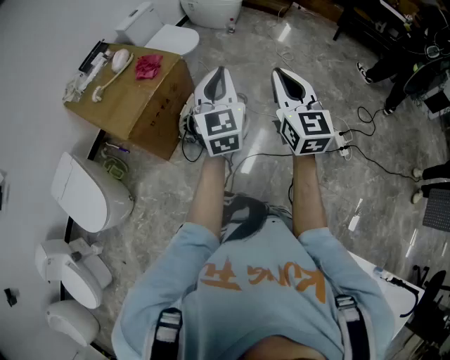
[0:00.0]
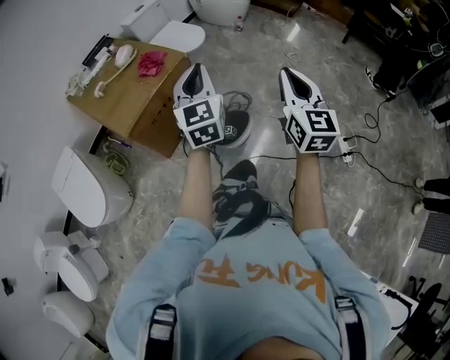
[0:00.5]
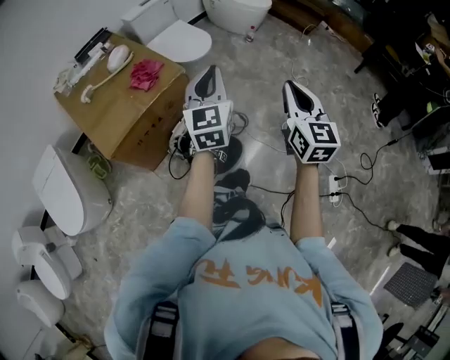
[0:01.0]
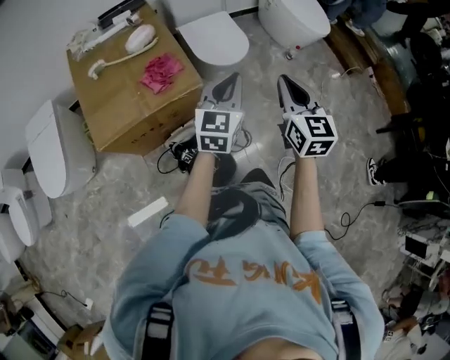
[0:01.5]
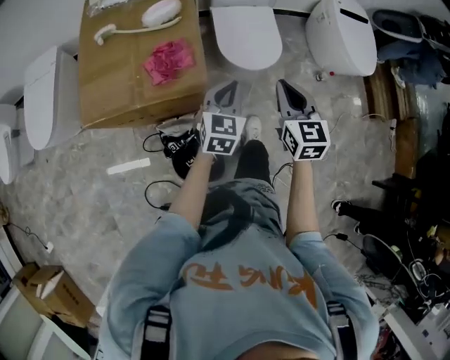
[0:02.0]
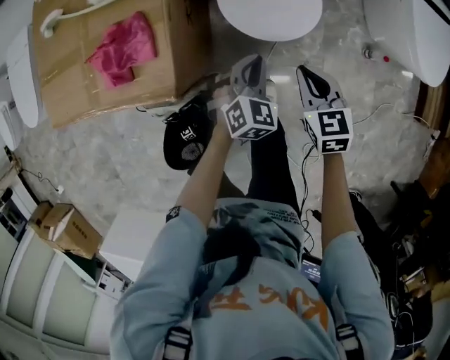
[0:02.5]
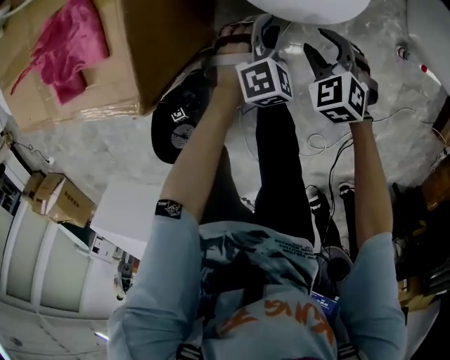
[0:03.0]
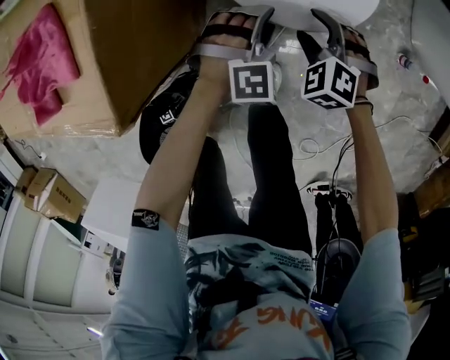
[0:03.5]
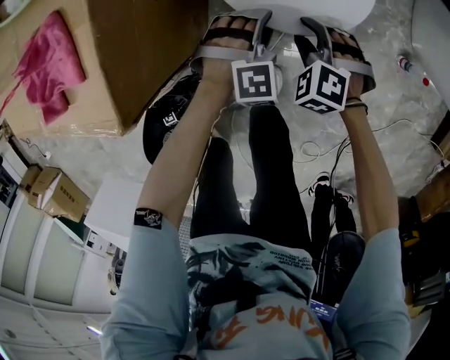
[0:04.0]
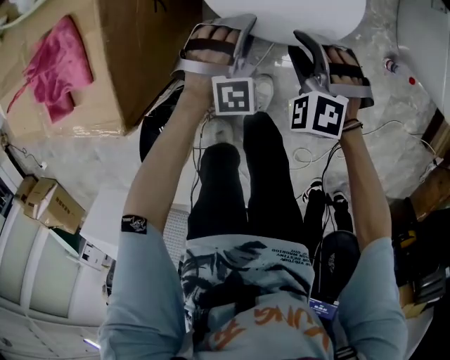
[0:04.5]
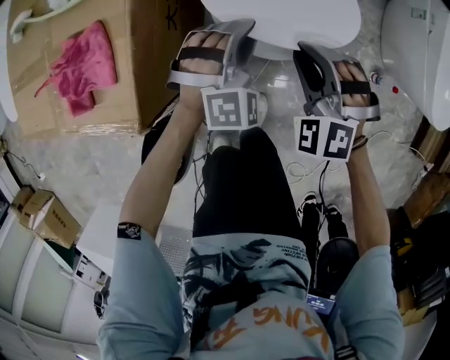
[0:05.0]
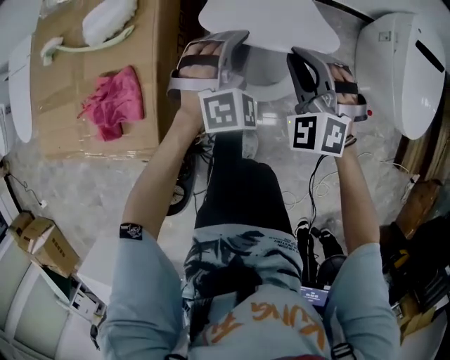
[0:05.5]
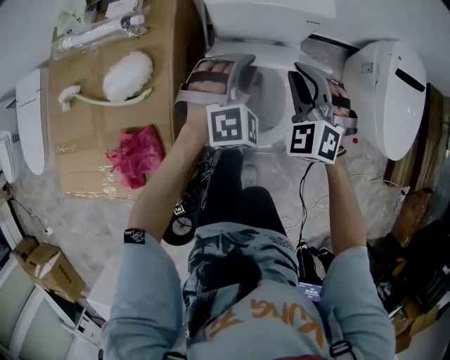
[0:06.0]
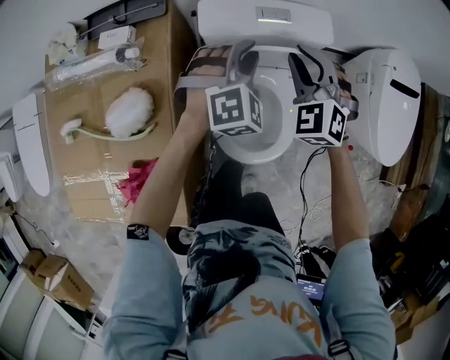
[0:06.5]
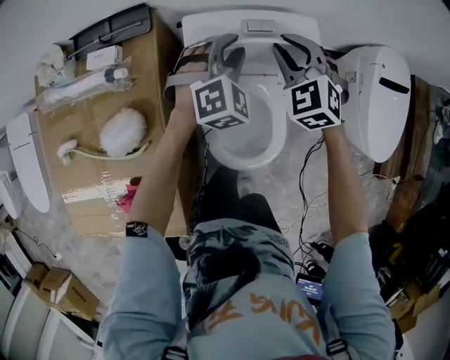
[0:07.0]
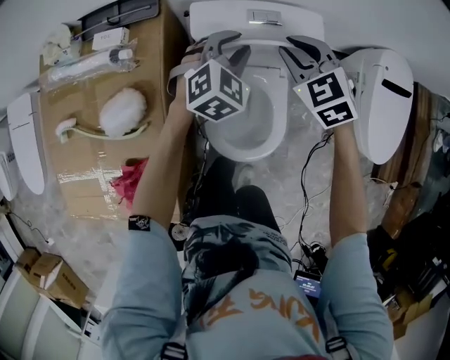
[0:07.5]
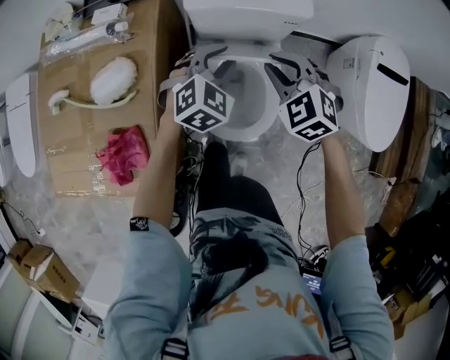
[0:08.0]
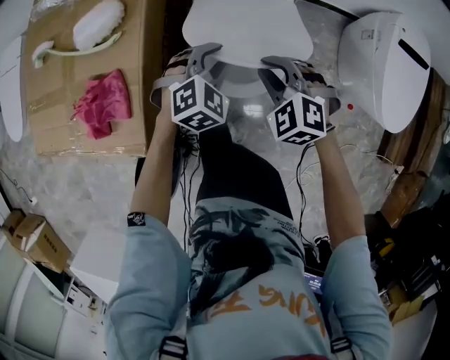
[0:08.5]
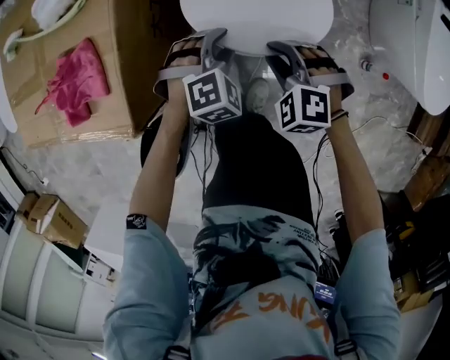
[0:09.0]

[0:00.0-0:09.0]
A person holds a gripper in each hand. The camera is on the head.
0:00.0 to 0:02.0: The two grippers travel together, roughly 70 cm. The right gripper changes its angle by about 50 degrees, while the left gripper rotates some 40 degrees.
0:02.0 to 0:04.5: The left gripper travels downward, forward and to the right by about 50 cm, rolls clockwise, seen from behind, by roughly 60 degrees, and opens up, while the right gripper heads downward and forward, covering some 50 cm, rotates around the line of its fingers by about 60 degrees, counterclockwise from behind, and opens up.
0:04.5 to 0:07.0: The two grippers travel together, forward, some 40 cm. The grippers both shift upward by about 35 cm. The right gripper rotates approximately 30 degrees; the left gripper turns by roughly 20 degrees.
0:07.0 to 0:09.0: The pair of grippers is taken backward, about 40 cm. The grippers both shift downward by approximately 25 cm. The right gripper swivels roughly 30 degrees, while the left gripper swivels some 20 degrees.

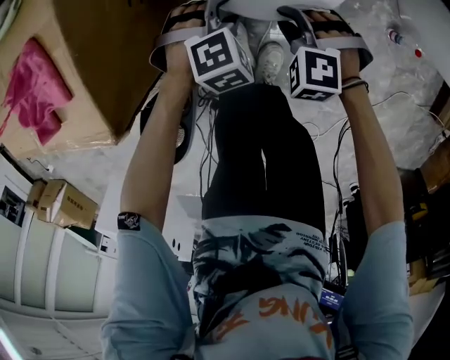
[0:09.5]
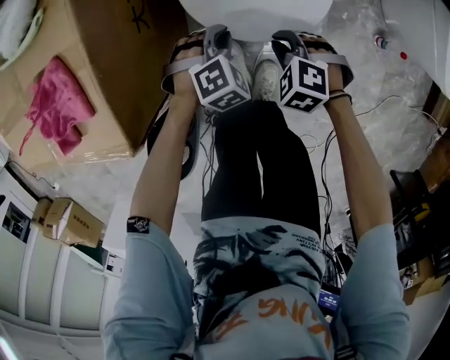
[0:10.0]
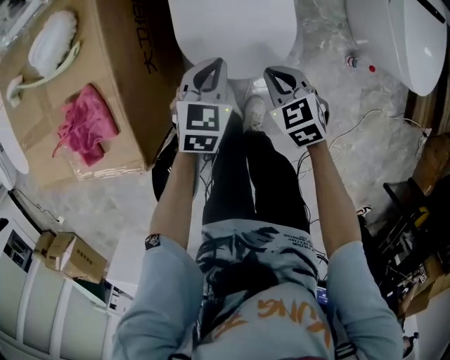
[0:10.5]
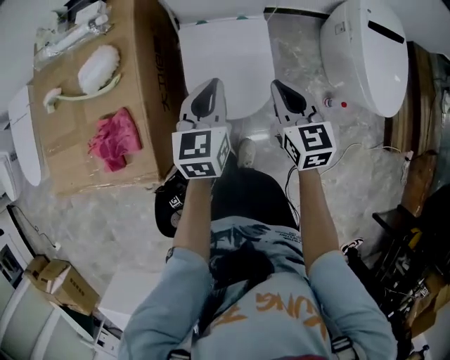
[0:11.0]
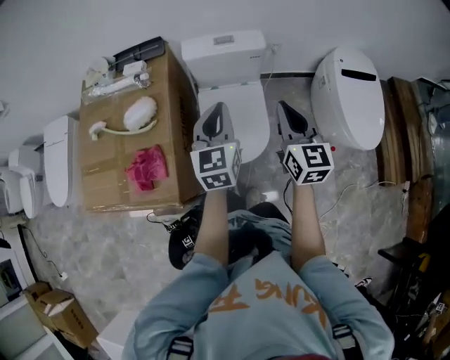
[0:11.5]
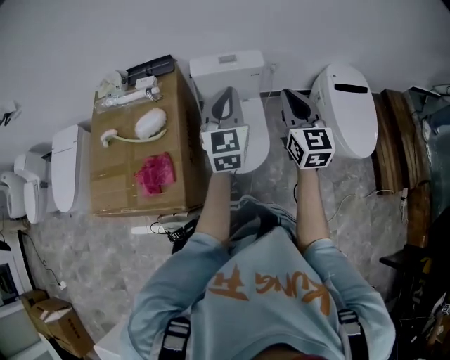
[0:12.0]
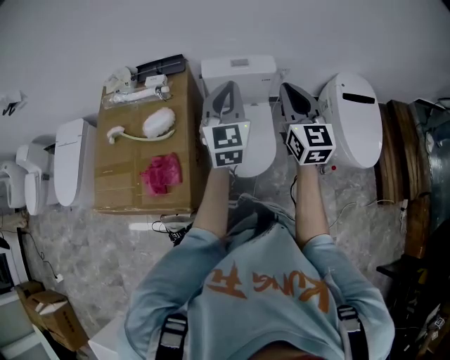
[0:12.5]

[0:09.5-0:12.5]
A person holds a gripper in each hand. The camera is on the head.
0:09.5 to 0:11.0: The grippers both shift upward by approximately 35 cm. The left gripper angles its fingers upward, by some 40 degrees, and closes, while the right gripper twists about 70 degrees clockwise, seen from behind, and closes up.
0:11.0 to 0:12.5: The grippers both shift upward by about 30 cm. The left gripper changes its angle by some 30 degrees. The right gripper swivels about 30 degrees.

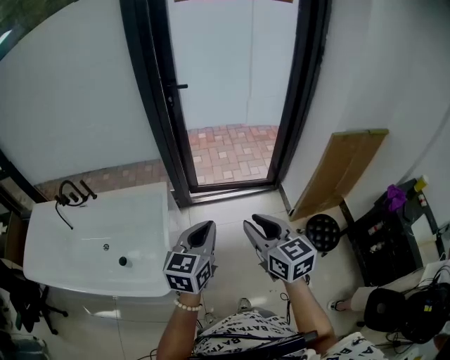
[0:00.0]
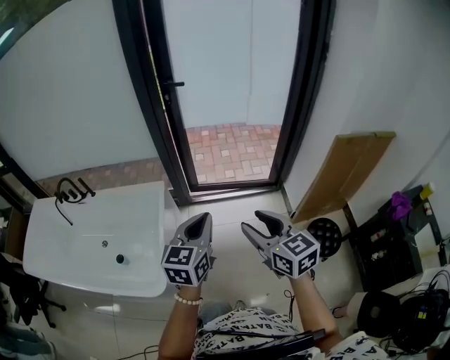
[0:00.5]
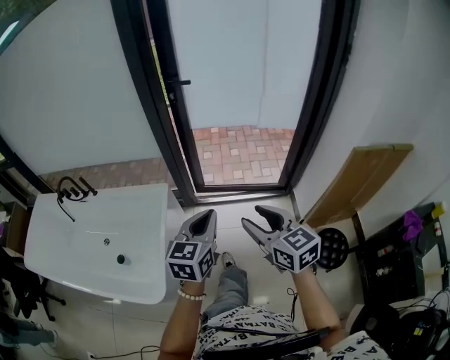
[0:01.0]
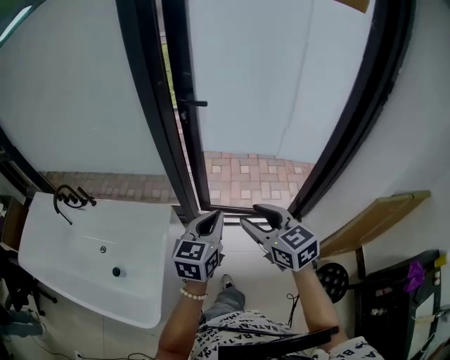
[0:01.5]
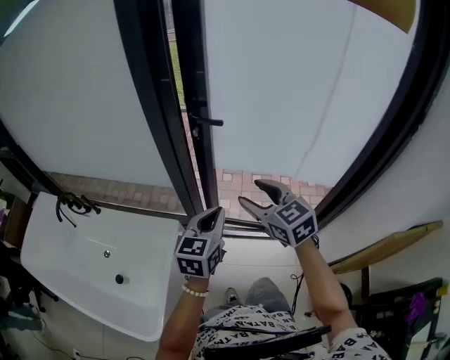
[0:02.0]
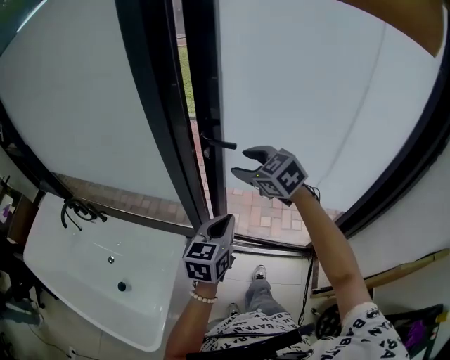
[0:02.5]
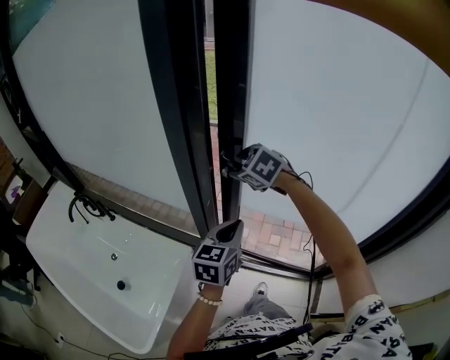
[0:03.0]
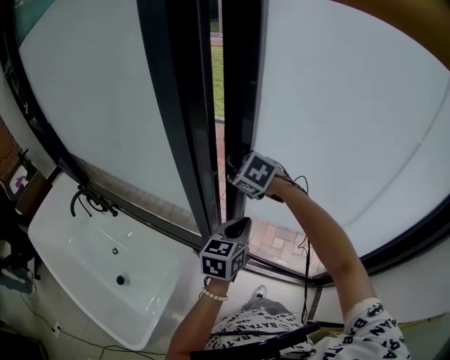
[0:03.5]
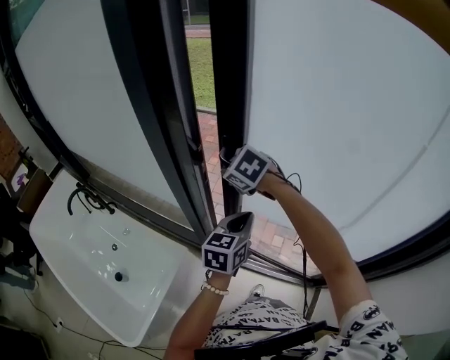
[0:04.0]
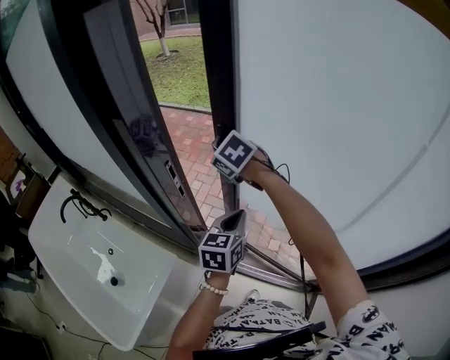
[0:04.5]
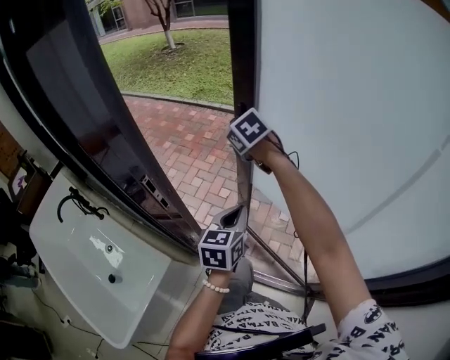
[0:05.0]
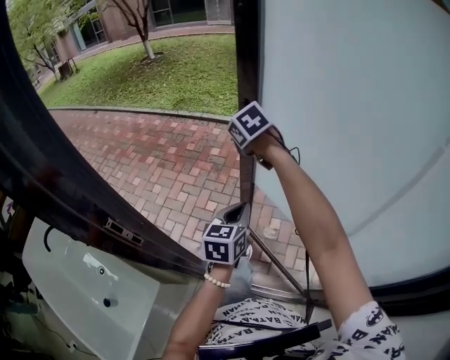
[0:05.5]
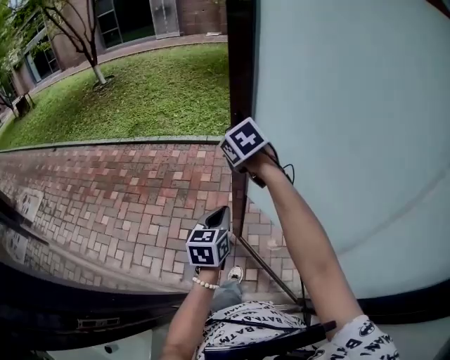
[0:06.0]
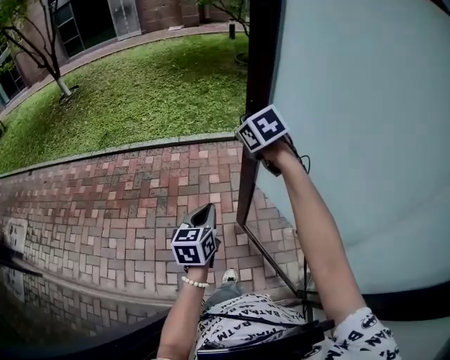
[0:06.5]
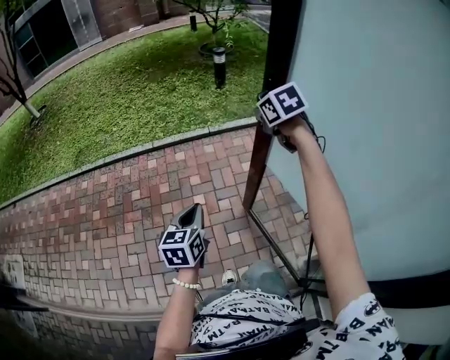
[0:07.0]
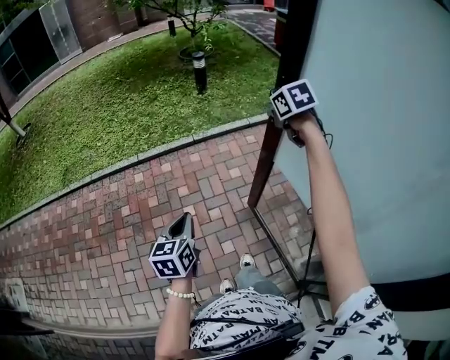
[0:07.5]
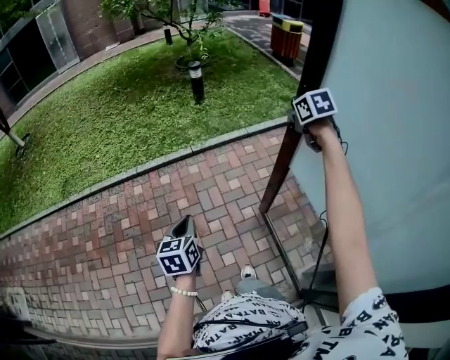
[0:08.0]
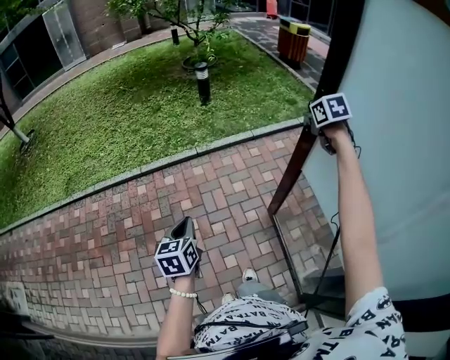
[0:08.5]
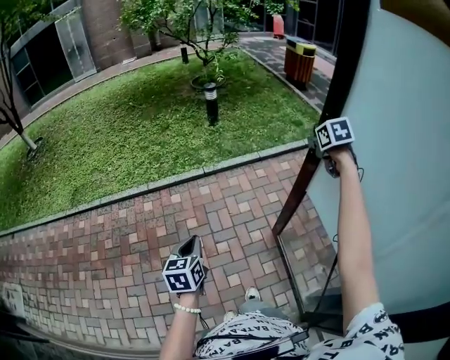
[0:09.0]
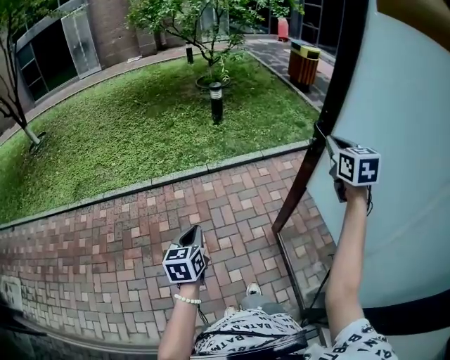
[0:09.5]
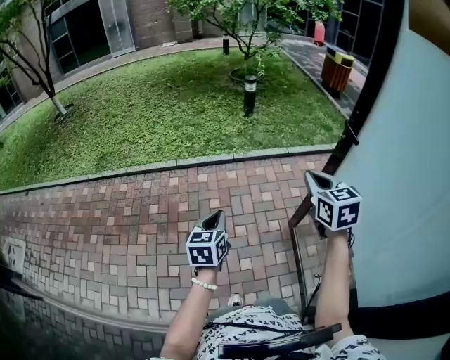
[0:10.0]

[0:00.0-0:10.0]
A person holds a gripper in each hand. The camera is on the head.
0:00.0 to 0:02.0: The two grippers travel together, forward, approximately 50 cm. The right gripper rotates roughly 30 degrees, and opens its fingers.
0:02.0 to 0:04.0: The right gripper goes approximately 35 cm forward, tilts its fingers about 30 degrees downward, and closes up, while the left gripper goes about 25 cm forward and to the right.
0:04.0 to 0:06.0: The pair of grippers is taken forward and to the right, approximately 50 cm. The right gripper swivels about 40 degrees.
0:06.0 to 0:08.0: The left gripper changes place by roughly 25 cm. The right gripper ends up approximately 60 cm from where it was, and swivels about 50 degrees.
0:08.0 to 0:10.0: The left gripper moves backward, roughly 5 cm, while the right gripper travels backward and to the left by roughly 30 cm, changes its angle by roughly 20 degrees, and opens, then closes again.

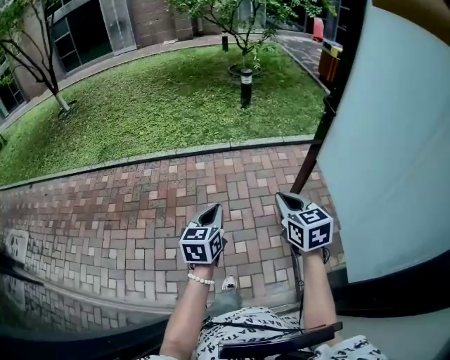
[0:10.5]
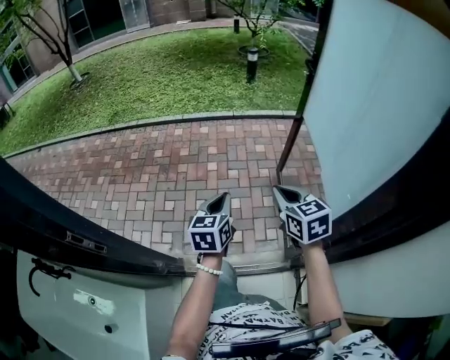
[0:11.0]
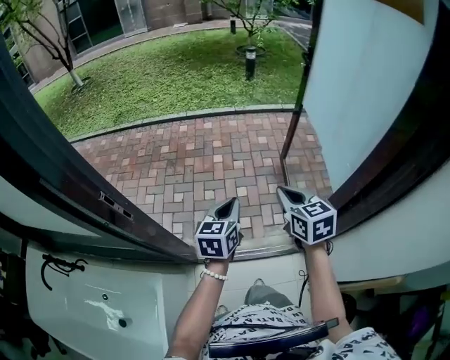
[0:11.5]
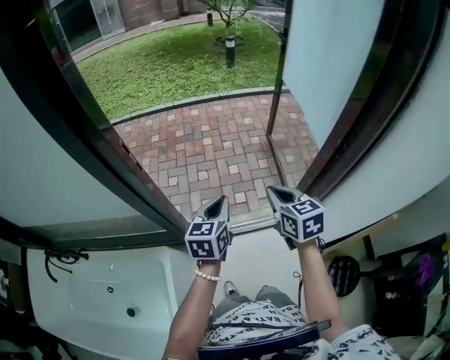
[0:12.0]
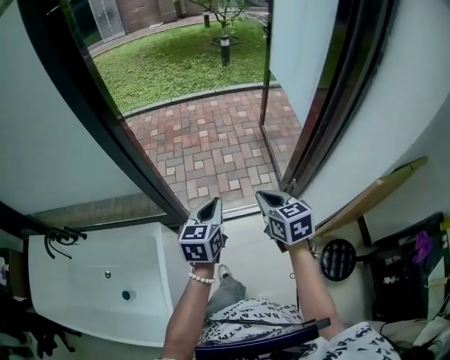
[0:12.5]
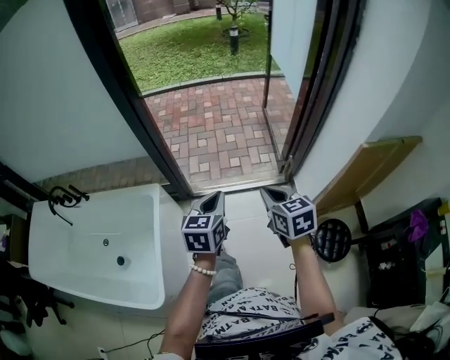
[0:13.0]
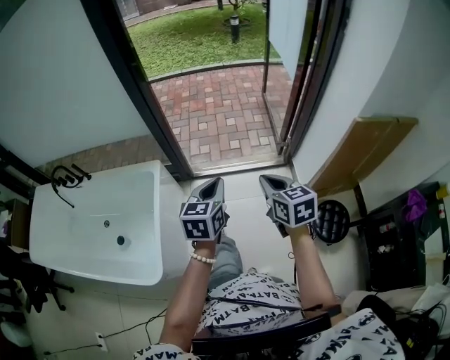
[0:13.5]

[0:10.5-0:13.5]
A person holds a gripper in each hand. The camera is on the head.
0:10.5 to 0:12.0: The pair of grippers is taken backward, about 50 cm.
0:12.0 to 0:13.5: The two grippers go about 40 cm backward.

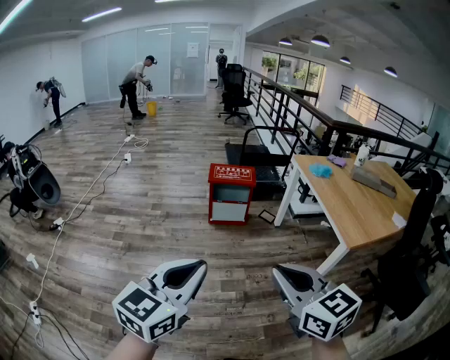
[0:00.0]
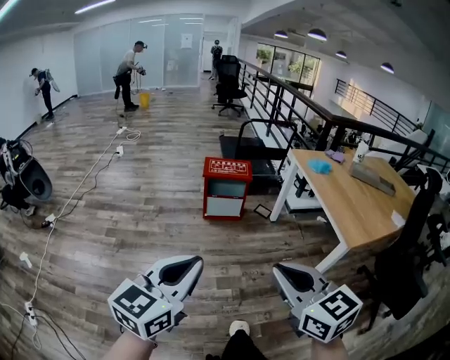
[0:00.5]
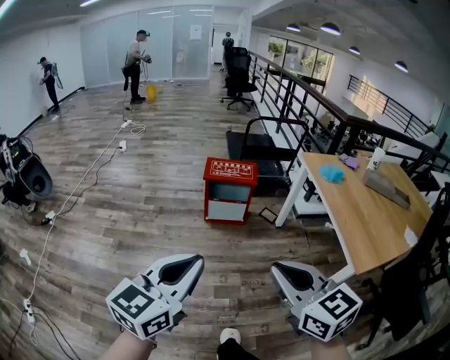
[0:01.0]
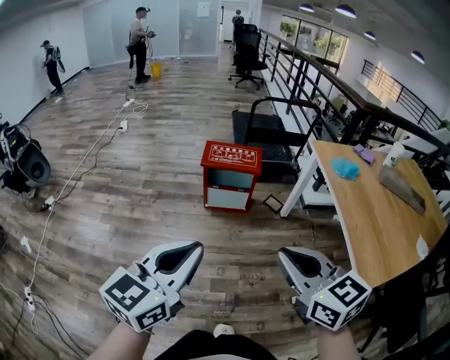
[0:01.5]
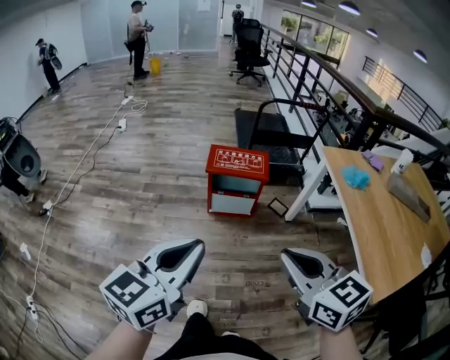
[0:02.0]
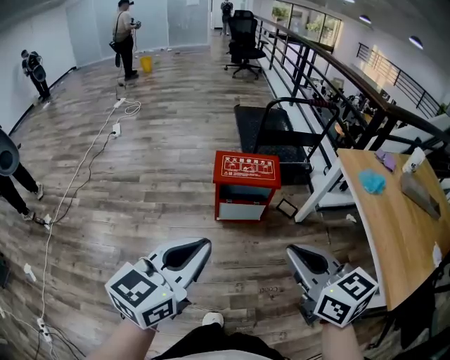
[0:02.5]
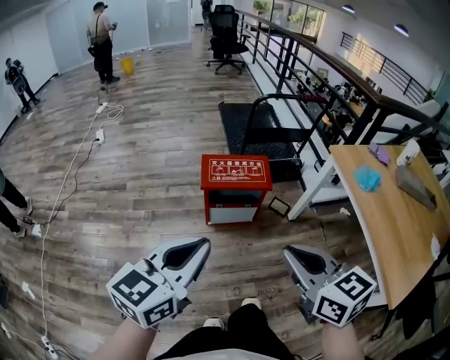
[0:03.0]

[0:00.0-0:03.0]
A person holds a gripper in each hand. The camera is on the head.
0:00.0 to 0:01.5: Both grippers travel together forward, about 25 cm.
0:01.5 to 0:03.0: The two grippers go approximately 25 cm forward.
